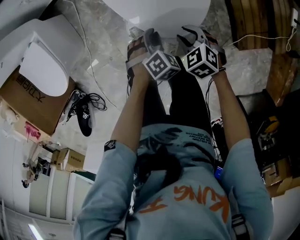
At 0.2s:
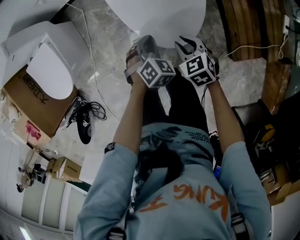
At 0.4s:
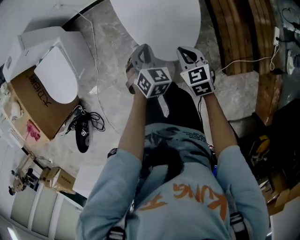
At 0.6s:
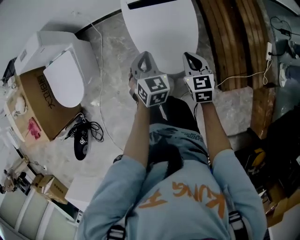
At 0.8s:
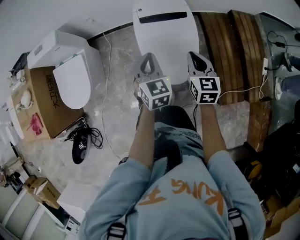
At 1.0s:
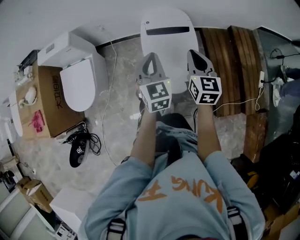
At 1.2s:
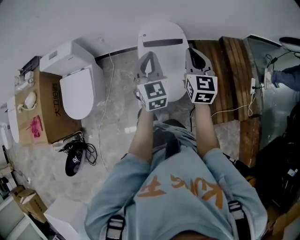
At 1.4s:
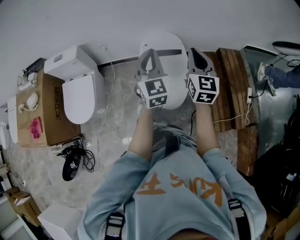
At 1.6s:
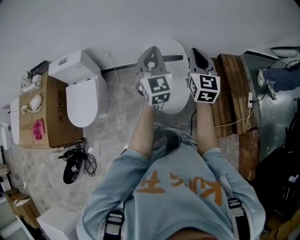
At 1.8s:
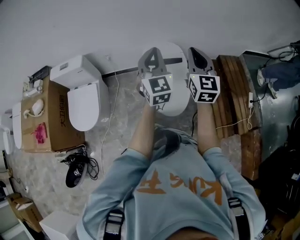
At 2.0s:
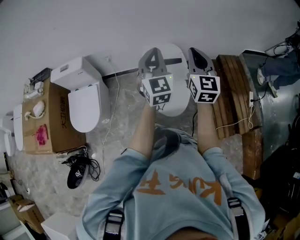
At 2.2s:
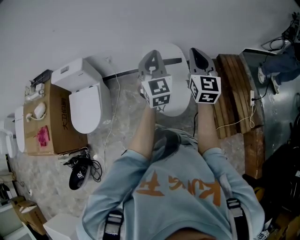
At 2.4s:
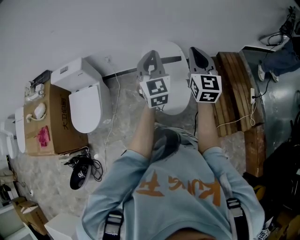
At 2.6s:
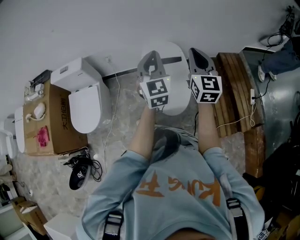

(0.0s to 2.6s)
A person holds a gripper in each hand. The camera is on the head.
0.0s - 1.2s: Both grippers move upward, about 50 cm. The left gripper angles its fingers upward, by approximately 60 degrees. The right gripper points its fingers about 50 degrees further upward.
1.2s - 2.6s: The two grippers go some 10 cm upward.

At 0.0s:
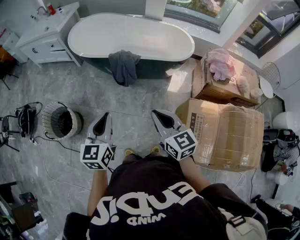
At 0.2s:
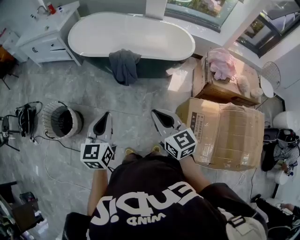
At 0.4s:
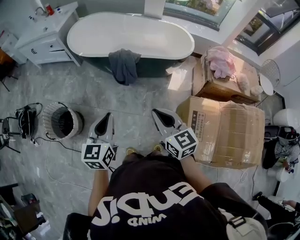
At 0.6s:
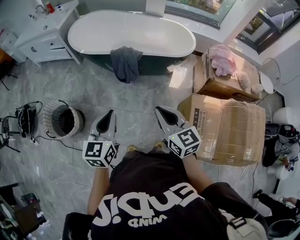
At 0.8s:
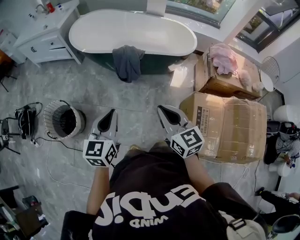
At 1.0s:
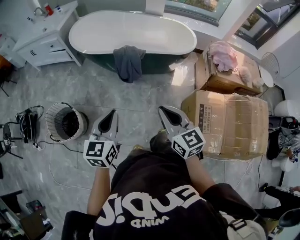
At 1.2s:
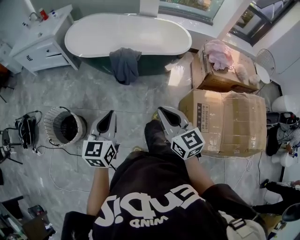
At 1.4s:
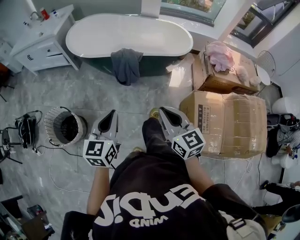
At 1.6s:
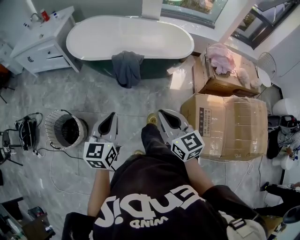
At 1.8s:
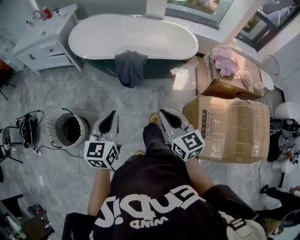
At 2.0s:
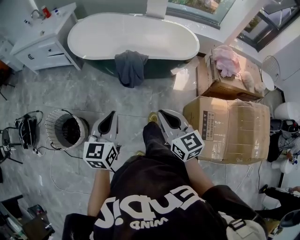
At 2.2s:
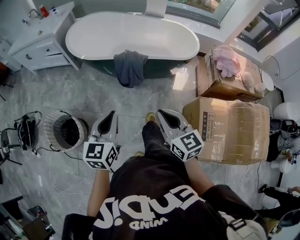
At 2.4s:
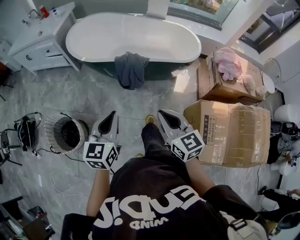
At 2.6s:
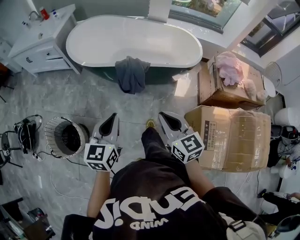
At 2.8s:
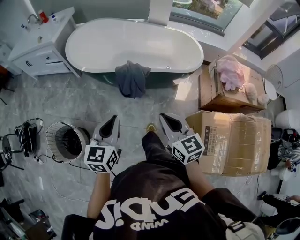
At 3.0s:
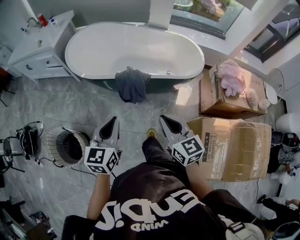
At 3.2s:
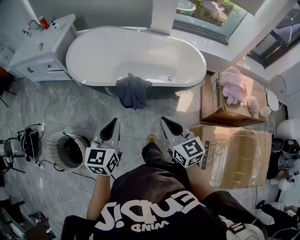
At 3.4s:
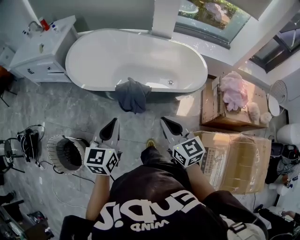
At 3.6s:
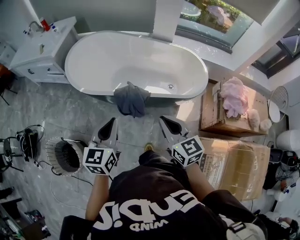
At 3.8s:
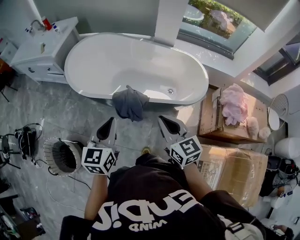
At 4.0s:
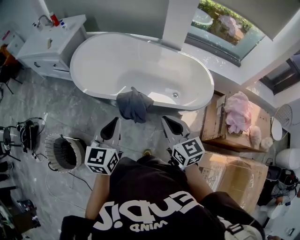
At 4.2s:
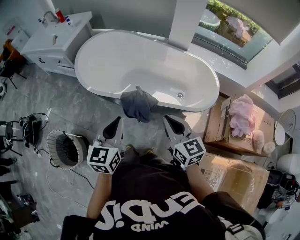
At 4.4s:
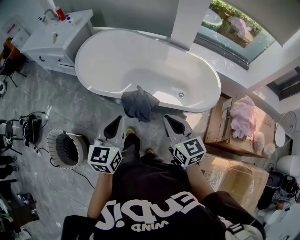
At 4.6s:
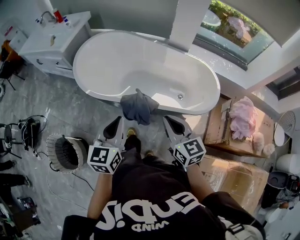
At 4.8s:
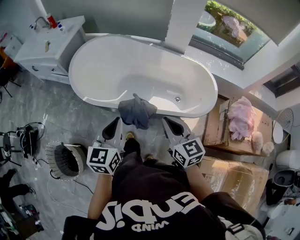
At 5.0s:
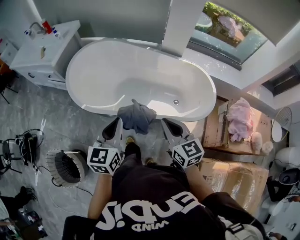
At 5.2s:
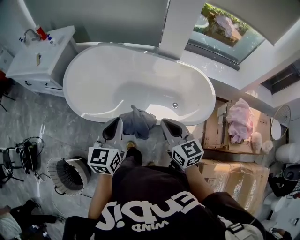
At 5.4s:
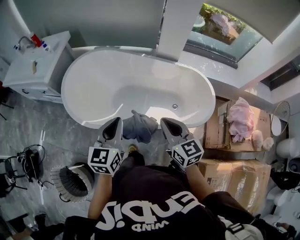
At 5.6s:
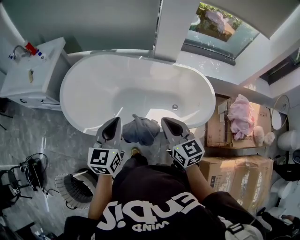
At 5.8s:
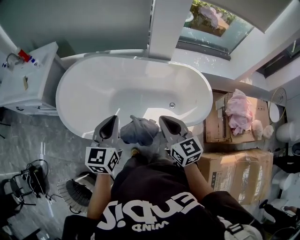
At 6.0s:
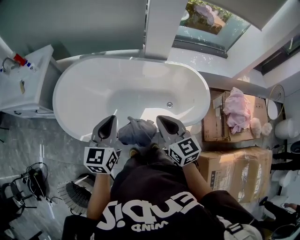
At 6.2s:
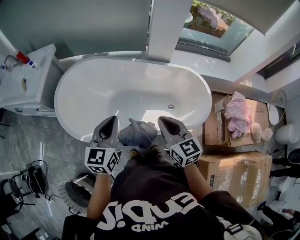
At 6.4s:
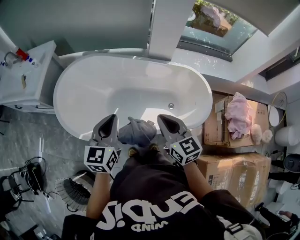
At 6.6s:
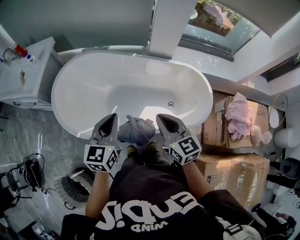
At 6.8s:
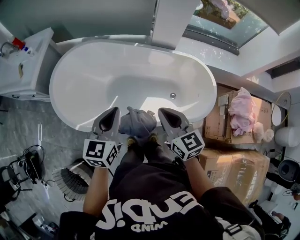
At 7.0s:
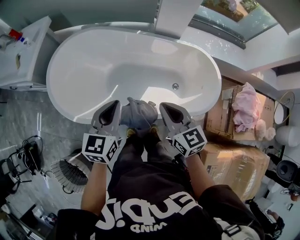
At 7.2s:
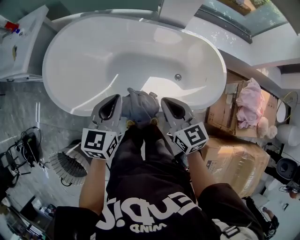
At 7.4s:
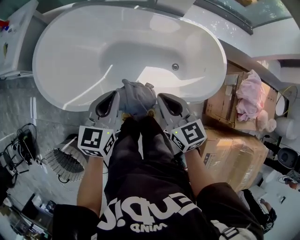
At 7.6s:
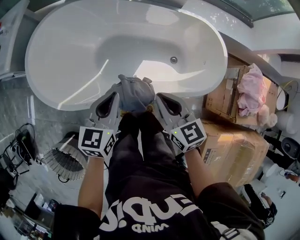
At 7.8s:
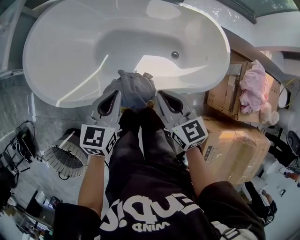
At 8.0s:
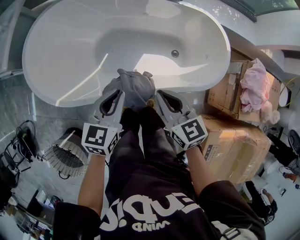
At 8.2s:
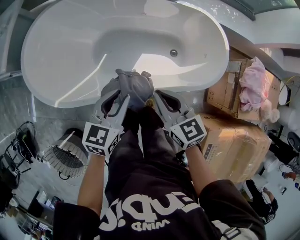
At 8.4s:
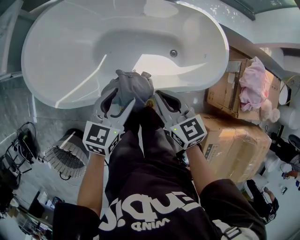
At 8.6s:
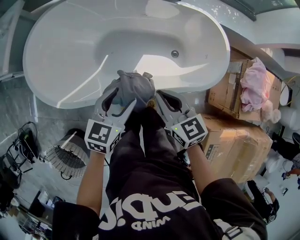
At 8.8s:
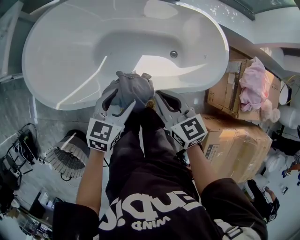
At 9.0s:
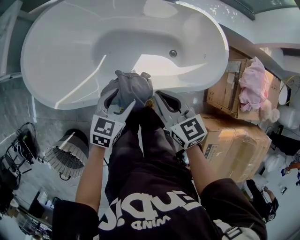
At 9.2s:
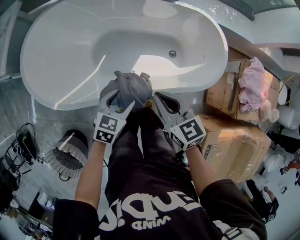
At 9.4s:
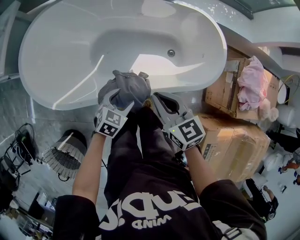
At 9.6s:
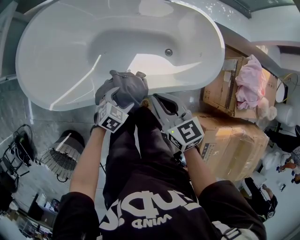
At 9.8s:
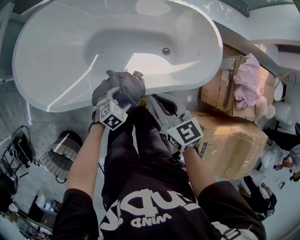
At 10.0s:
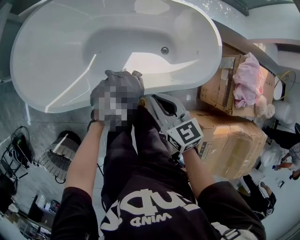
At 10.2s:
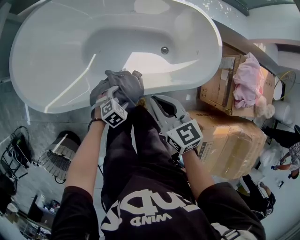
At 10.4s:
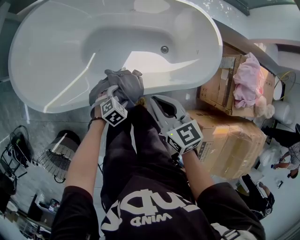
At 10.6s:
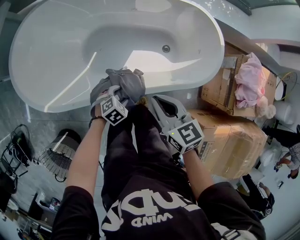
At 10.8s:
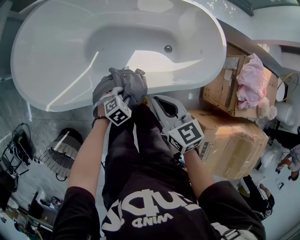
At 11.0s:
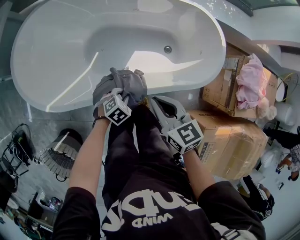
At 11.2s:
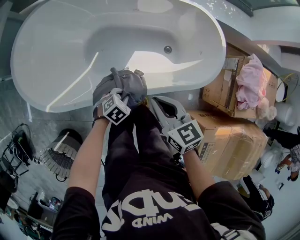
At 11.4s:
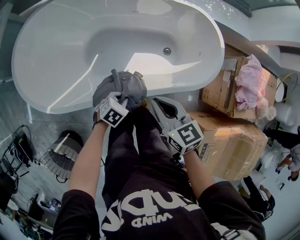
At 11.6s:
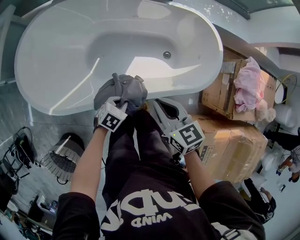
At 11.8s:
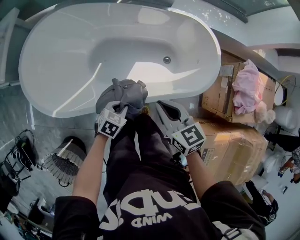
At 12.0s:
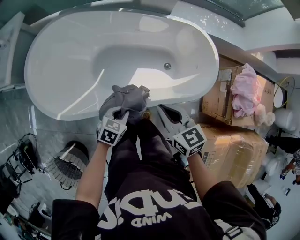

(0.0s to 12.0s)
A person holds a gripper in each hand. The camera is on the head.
0.0s - 1.6s: Both grippers travel together to the left, some 5 cm.
1.6s - 3.0s: Both grippers travel together forward, some 20 cm.
3.0s - 4.4s: Both grippers travel together forward, about 20 cm.
4.4s - 6.0s: Both grippers travel together forward, about 25 cm.
6.0s - 7.6s: The two grippers go approximately 15 cm downward.
7.6s - 9.0s: The left gripper heads downward and to the right, covering roughly 10 cm, rotates some 20 degrees, and opens.
9.0s - 10.4s: The left gripper heads downward, covering roughly 20 cm, and changes its angle by roughly 40 degrees.
10.4s - 12.0s: The left gripper goes some 15 cm upward, rotates about 30 degrees, and closes.

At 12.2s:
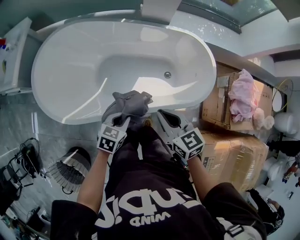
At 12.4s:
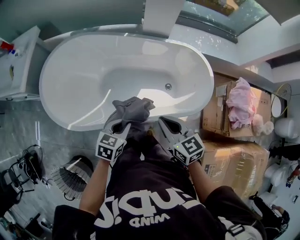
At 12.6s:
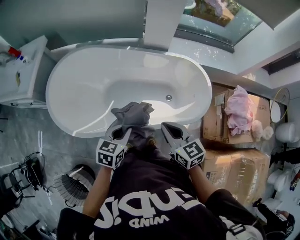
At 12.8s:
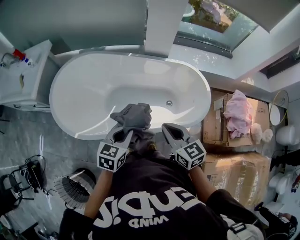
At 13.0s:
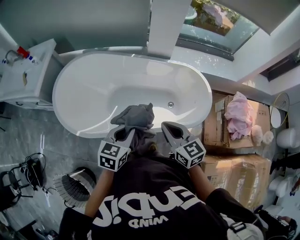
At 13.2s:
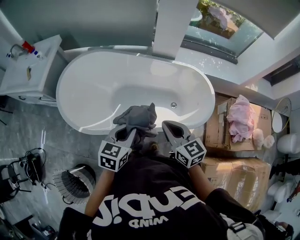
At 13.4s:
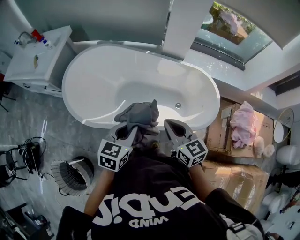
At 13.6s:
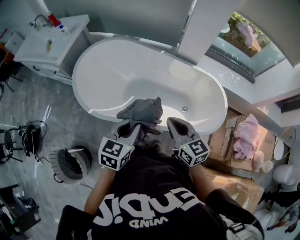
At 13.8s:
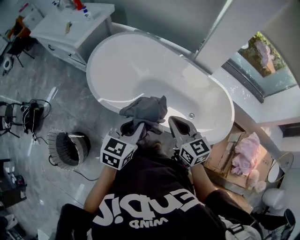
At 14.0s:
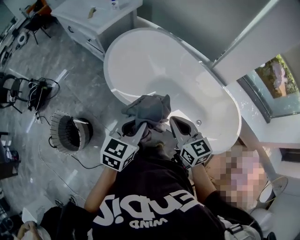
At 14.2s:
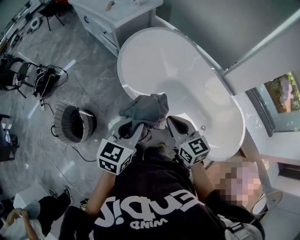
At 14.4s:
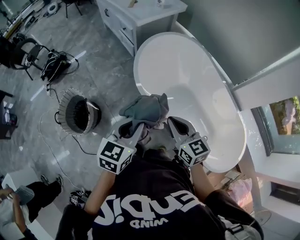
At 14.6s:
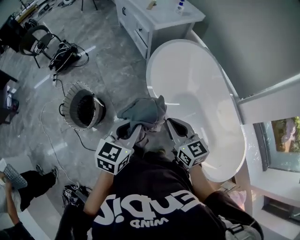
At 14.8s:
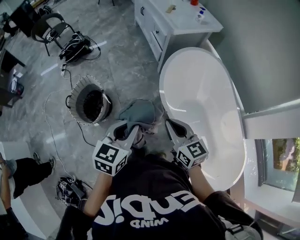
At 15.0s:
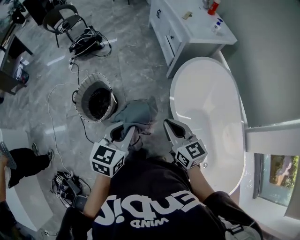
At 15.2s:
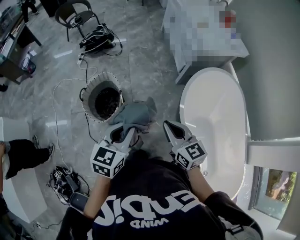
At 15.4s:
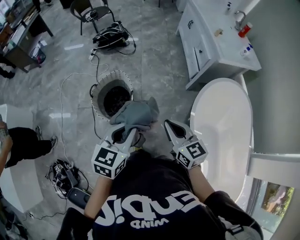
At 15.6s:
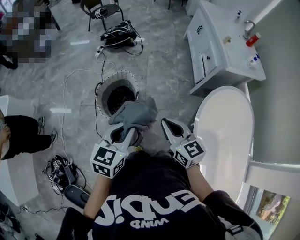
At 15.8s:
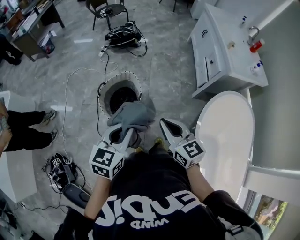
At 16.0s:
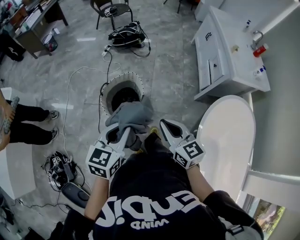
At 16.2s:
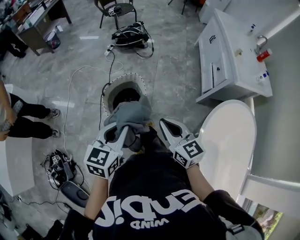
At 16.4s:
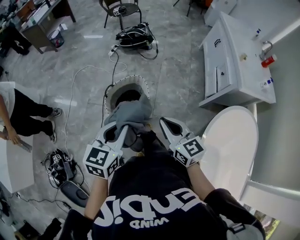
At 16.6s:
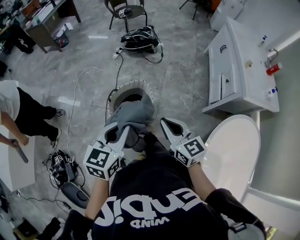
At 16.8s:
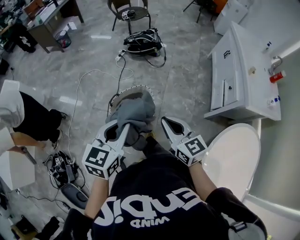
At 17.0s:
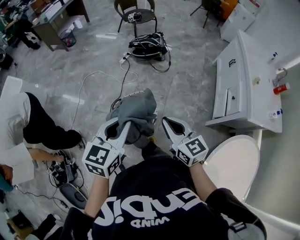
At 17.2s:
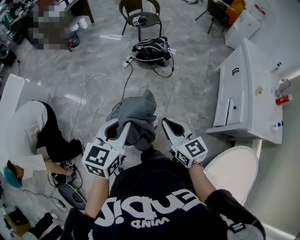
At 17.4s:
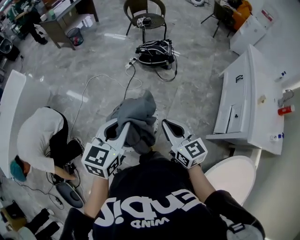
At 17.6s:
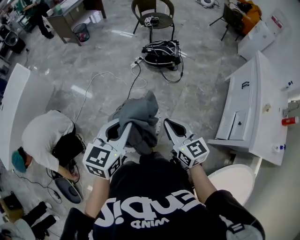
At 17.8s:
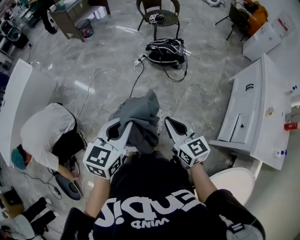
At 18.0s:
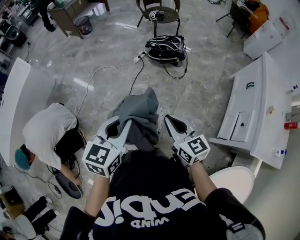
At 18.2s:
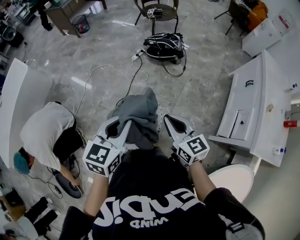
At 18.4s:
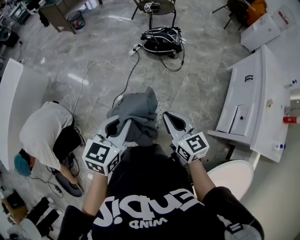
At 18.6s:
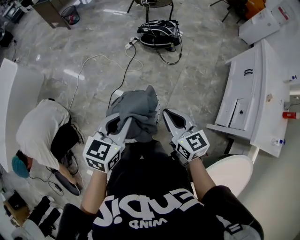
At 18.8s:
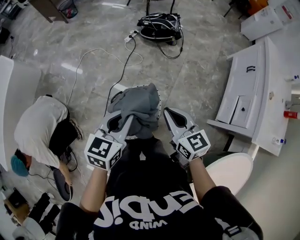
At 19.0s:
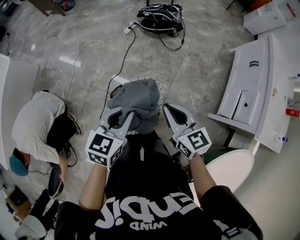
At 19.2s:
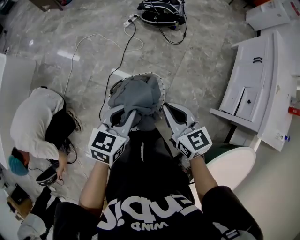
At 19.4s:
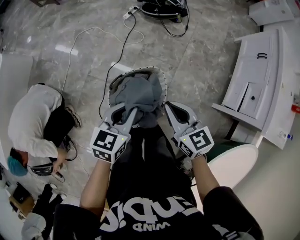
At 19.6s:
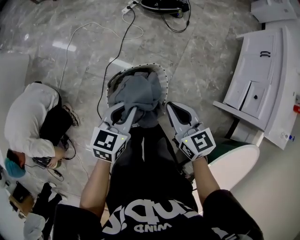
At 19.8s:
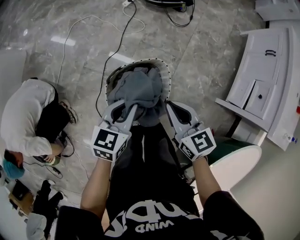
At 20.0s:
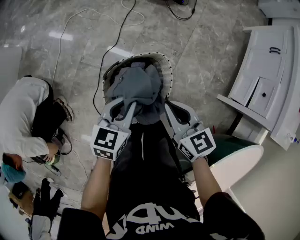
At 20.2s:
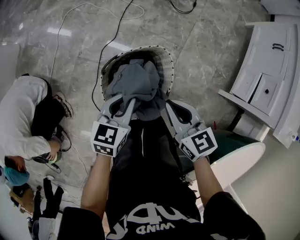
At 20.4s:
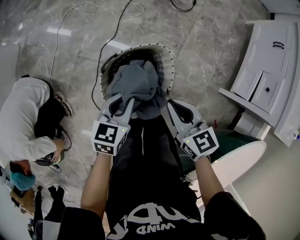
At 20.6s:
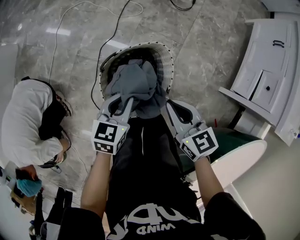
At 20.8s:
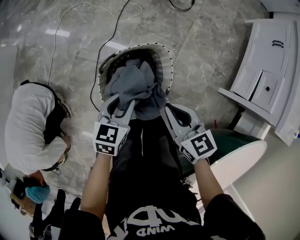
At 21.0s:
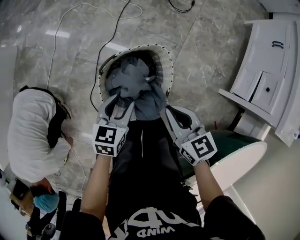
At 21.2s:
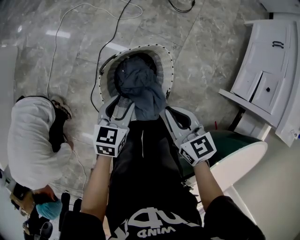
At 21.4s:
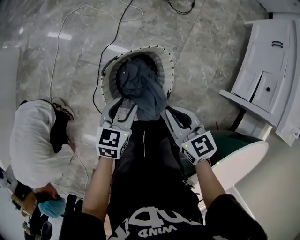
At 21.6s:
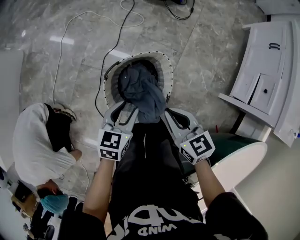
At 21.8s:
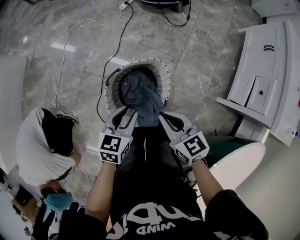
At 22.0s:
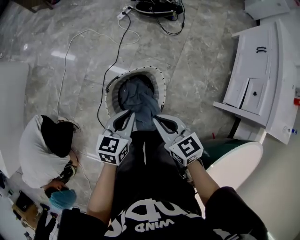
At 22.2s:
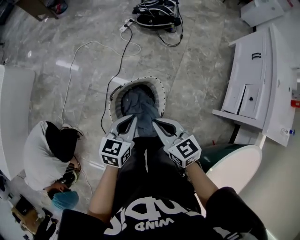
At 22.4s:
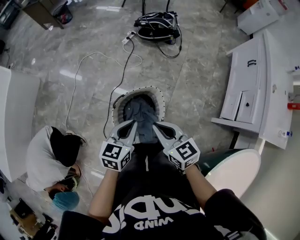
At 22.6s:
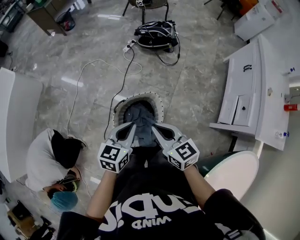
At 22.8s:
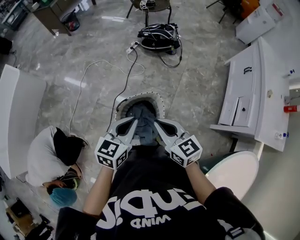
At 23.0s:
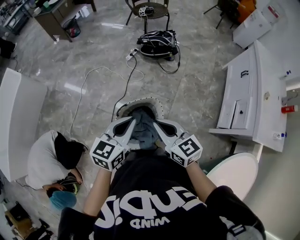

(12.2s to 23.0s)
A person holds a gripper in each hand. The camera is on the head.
12.2s - 13.8s: The left gripper heads upward, covering roughly 20 cm, and turns by some 40 degrees, while the right gripper ends up approximately 15 cm from where it was, and rotates approximately 20 degrees.
13.8s - 15.2s: Both grippers are carried approximately 40 cm. The left gripper changes its angle by about 60 degrees, while the right gripper rotates approximately 50 degrees.
15.2s - 16.8s: The left gripper ends up approximately 25 cm from where it was, and turns by some 30 degrees; the right gripper ends up roughly 30 cm from where it was, and swivels some 20 degrees.
16.8s - 18.4s: Both grippers travel together forward, some 20 cm.
18.4s - 20.0s: The grippers both shift downward by some 25 cm.
20.0s - 21.4s: The right gripper ends up some 5 cm from where it was, while the left gripper goes approximately 5 cm downward, and opens.
21.4s - 23.0s: Both grippers travel together upward, about 30 cm. The left gripper swivels roughly 20 degrees, and closes.
